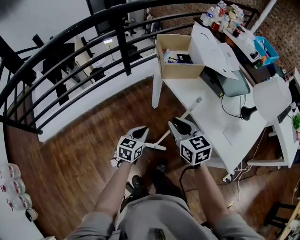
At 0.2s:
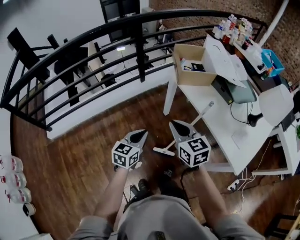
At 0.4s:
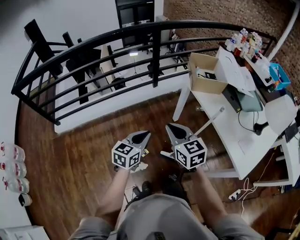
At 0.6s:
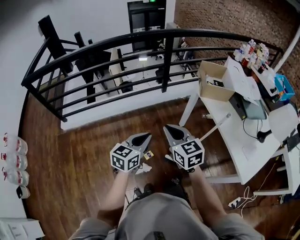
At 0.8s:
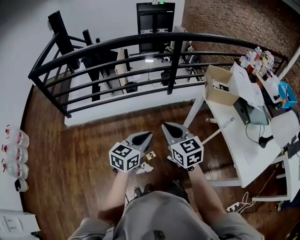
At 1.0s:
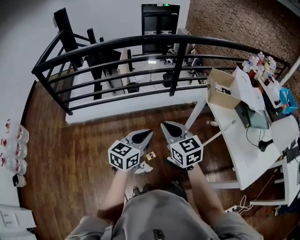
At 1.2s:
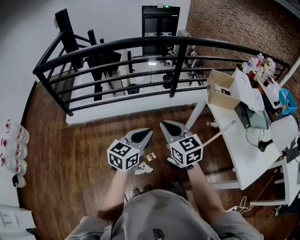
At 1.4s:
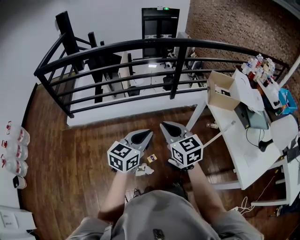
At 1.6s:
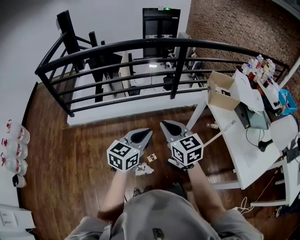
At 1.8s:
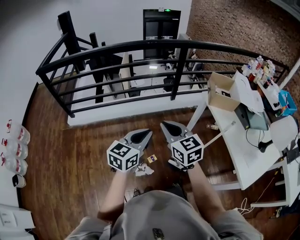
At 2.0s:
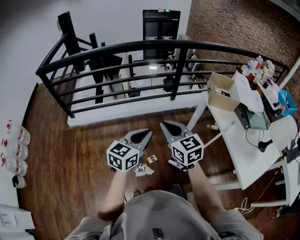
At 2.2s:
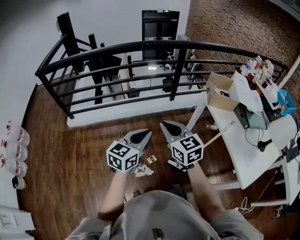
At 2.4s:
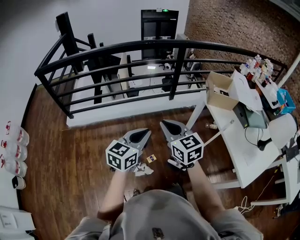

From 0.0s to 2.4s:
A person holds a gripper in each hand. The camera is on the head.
From 0.0s to 1.2s: The right gripper goes some 30 cm to the left, and changes its angle by some 30 degrees. The left gripper travels to the left, upward and backward by some 35 cm, and rotates some 20 degrees.
From 1.2s to 2.4s: There are only small adjustments of the grippers.

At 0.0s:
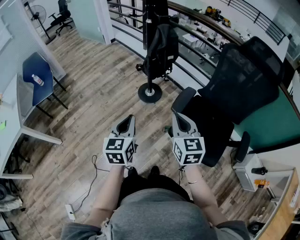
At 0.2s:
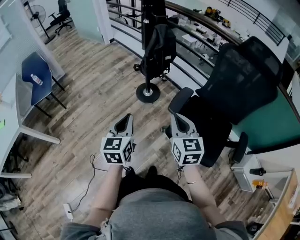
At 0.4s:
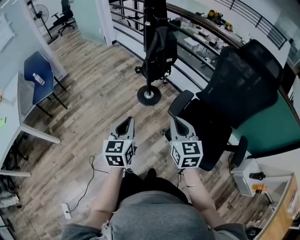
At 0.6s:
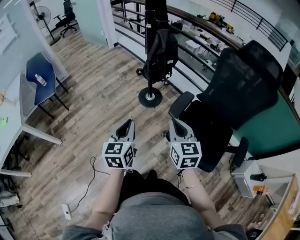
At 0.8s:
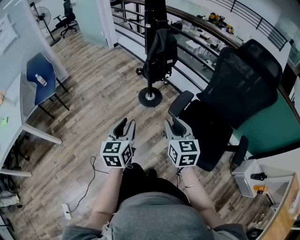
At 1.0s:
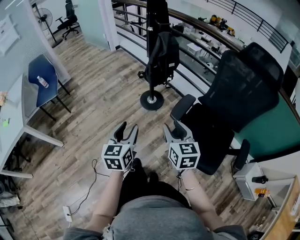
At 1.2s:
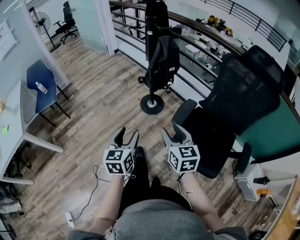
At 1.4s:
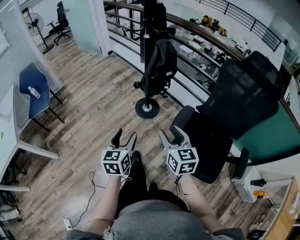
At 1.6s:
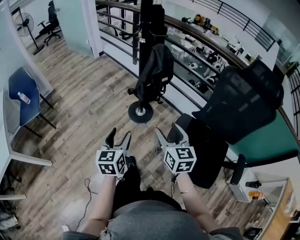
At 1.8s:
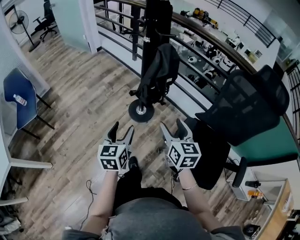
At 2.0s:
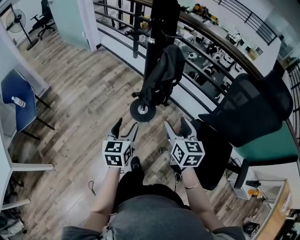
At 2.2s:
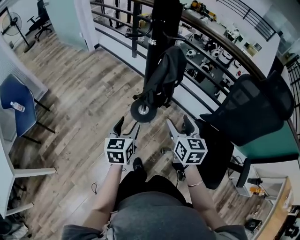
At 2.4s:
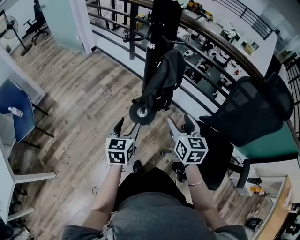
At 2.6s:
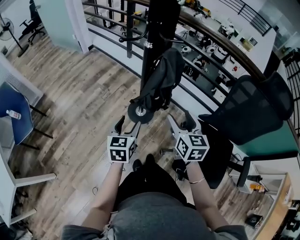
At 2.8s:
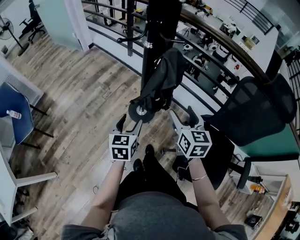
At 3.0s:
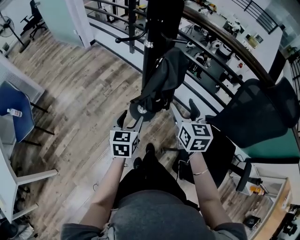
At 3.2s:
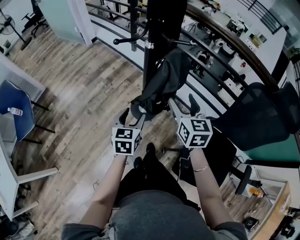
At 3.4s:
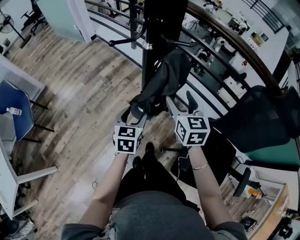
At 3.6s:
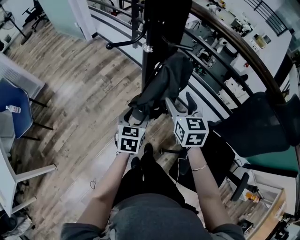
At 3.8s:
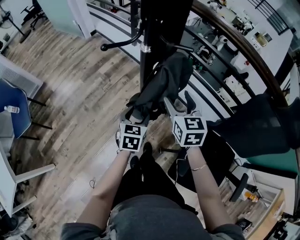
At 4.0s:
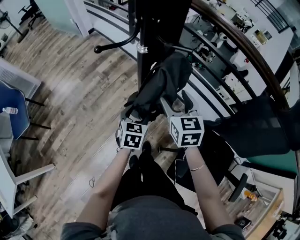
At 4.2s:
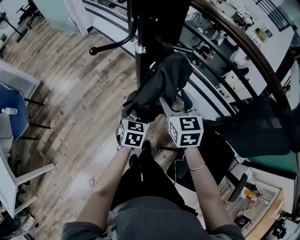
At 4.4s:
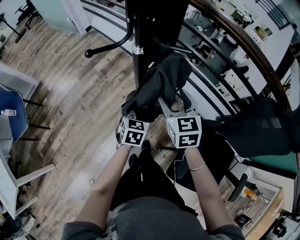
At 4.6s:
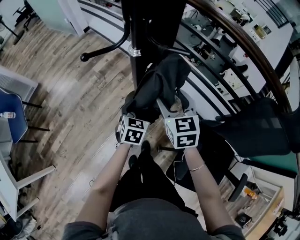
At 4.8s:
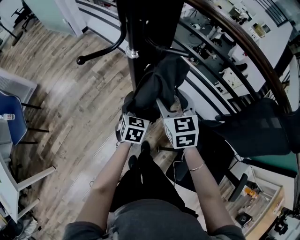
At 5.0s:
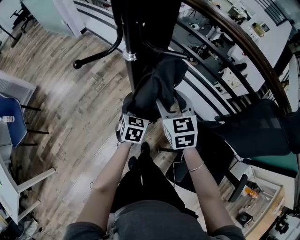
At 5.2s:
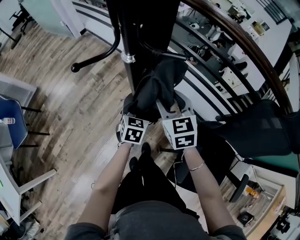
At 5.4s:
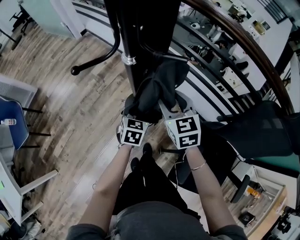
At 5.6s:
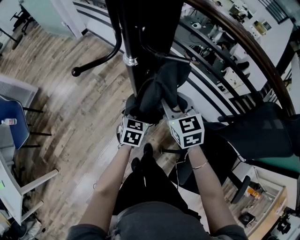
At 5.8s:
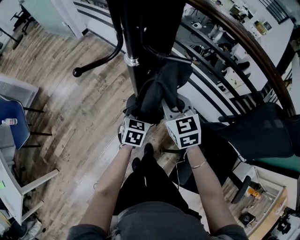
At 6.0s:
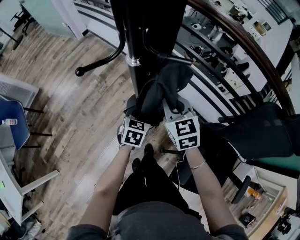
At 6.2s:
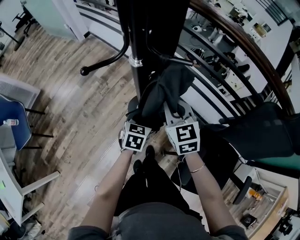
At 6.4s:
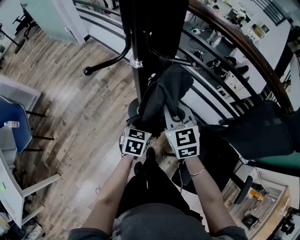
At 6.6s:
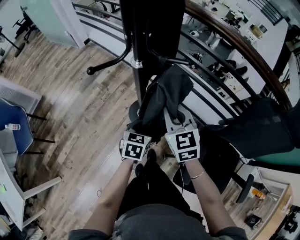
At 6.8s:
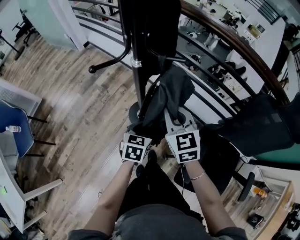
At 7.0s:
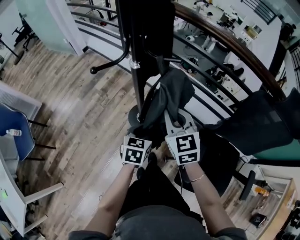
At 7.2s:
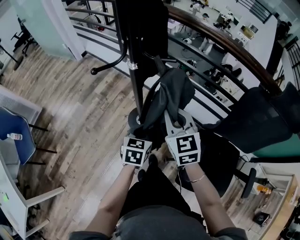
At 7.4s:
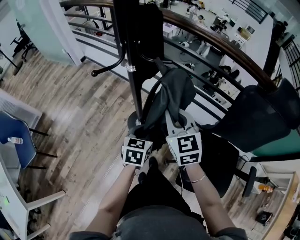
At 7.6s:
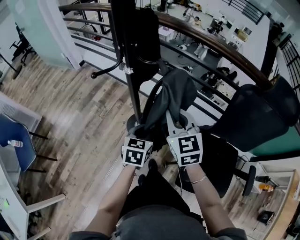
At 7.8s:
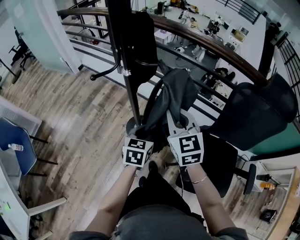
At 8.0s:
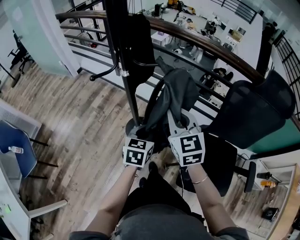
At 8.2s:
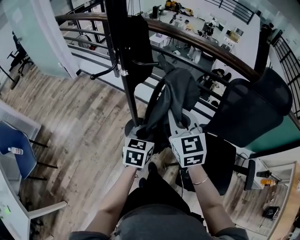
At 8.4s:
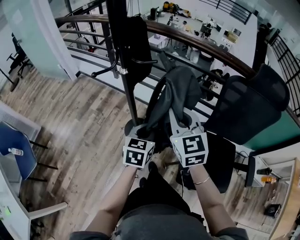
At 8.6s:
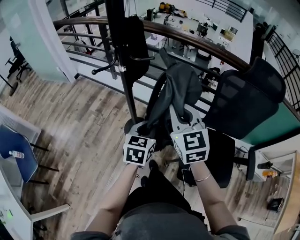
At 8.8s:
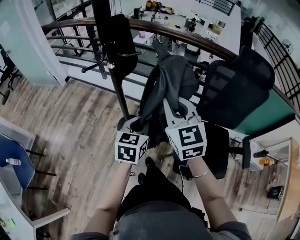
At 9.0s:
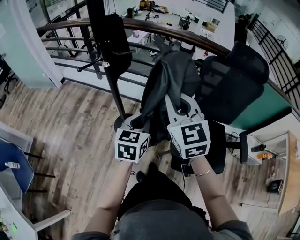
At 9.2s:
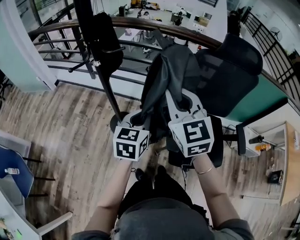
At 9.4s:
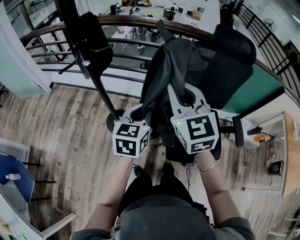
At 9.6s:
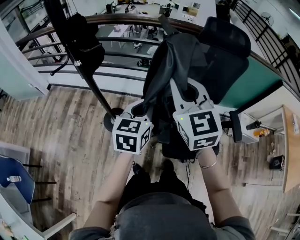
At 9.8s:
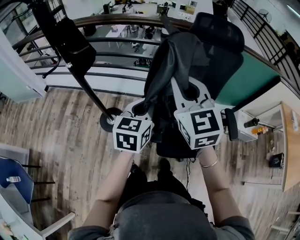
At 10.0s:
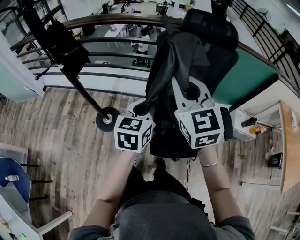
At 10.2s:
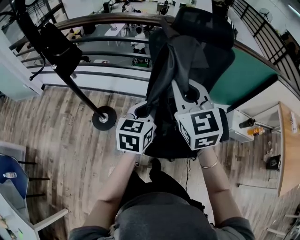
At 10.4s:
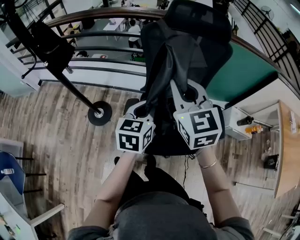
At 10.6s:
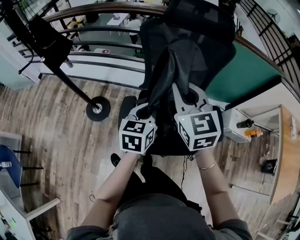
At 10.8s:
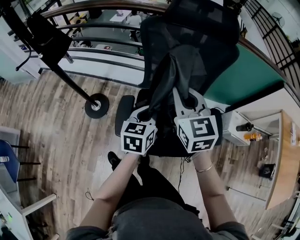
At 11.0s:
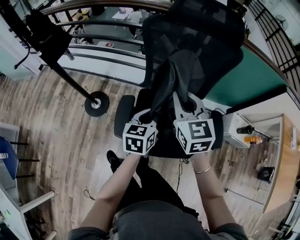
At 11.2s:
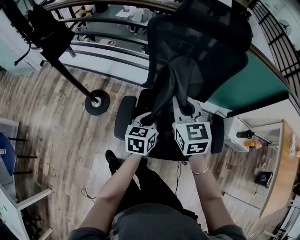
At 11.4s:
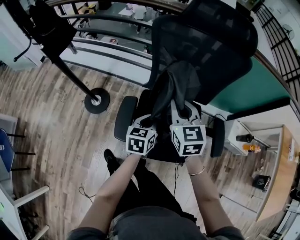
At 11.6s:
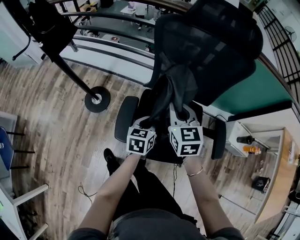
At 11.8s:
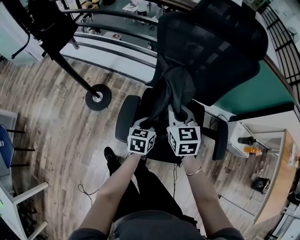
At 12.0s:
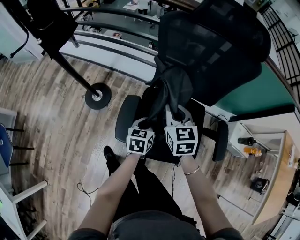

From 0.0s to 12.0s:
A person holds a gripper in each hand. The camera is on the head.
From 0.0s to 1.6s: The two grippers go some 15 cm forward. The left gripper opens up. Meanwhile the right gripper opens.
From 1.6s to 3.0s: Both grippers move forward, roughly 25 cm.
From 3.0s to 4.4s: The right gripper shifts approximately 15 cm forward and downward. Meanwhile the left gripper is displaced forward, downward and to the right by approximately 15 cm.
From 4.4s to 6.0s: The left gripper closes up. The right gripper closes up.
From 6.0s to 7.6s: Both grippers move upward and backward, some 15 cm.
From 7.6s to 9.0s: The left gripper is displaced upward, backward and to the right by approximately 15 cm. The right gripper shifts roughly 15 cm backward, upward and to the right.
From 9.0s to 10.4s: The grippers both shift to the right by some 30 cm.
From 10.4s to 12.0s: The grippers both shift downward by about 25 cm.

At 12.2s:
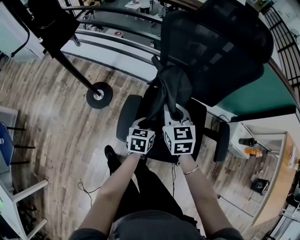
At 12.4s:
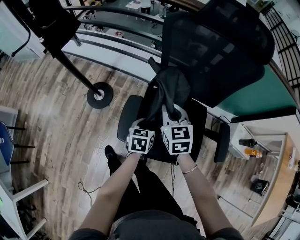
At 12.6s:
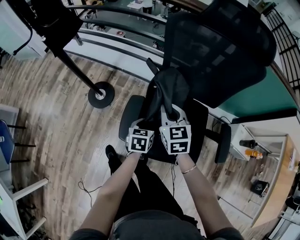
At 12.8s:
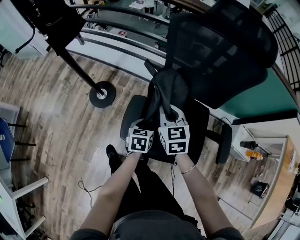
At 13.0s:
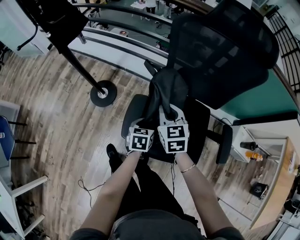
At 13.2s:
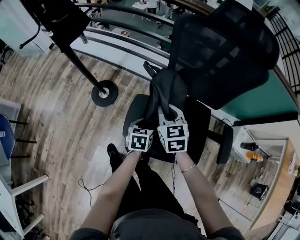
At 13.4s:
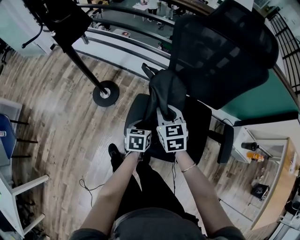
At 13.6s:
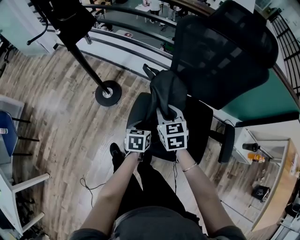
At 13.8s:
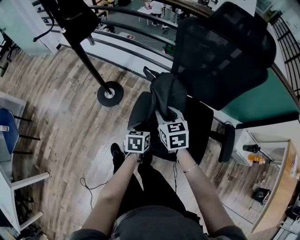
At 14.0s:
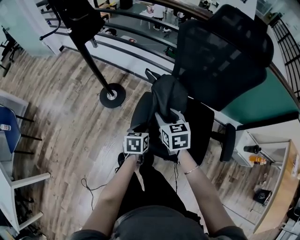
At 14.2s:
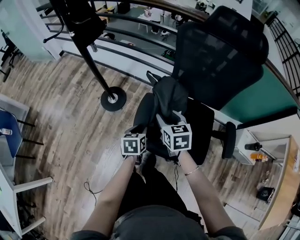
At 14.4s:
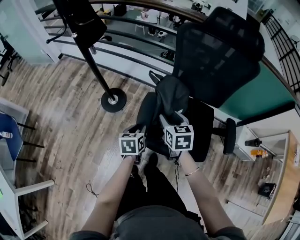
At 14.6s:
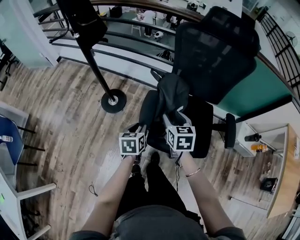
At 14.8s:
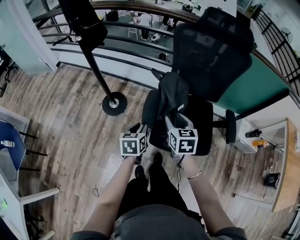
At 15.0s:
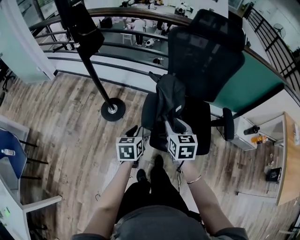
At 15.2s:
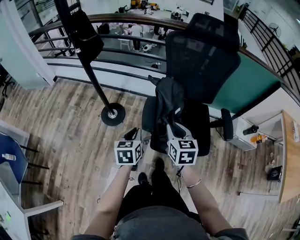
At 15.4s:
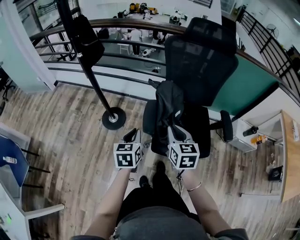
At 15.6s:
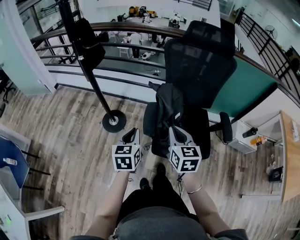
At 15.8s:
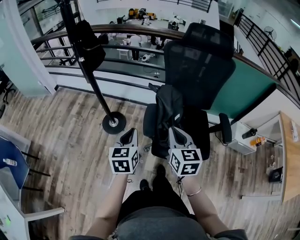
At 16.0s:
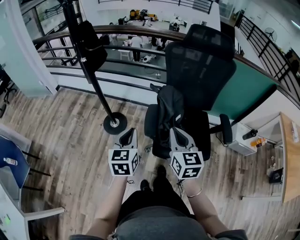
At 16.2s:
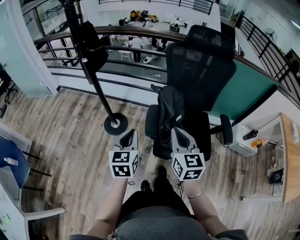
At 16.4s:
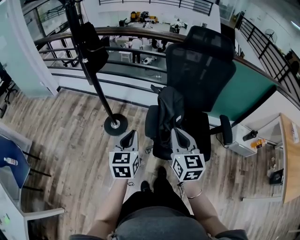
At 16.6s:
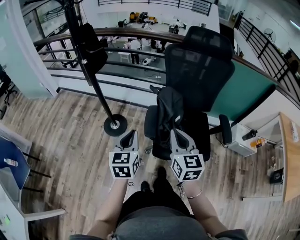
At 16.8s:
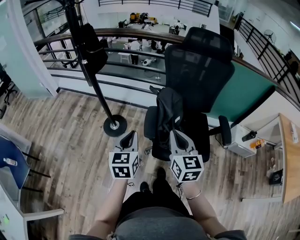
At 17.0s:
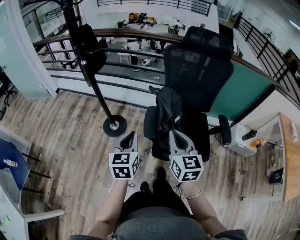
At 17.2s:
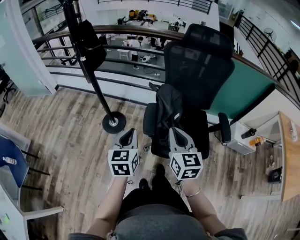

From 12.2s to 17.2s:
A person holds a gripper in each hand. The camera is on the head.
From 12.2s to 13.8s: The left gripper is displaced to the left and backward by roughly 10 cm, while the right gripper travels to the left by approximately 5 cm.
From 13.8s to 15.6s: The left gripper heads upward, to the left and backward, covering some 25 cm, and rotates about 30 degrees. Meanwhile the right gripper moves backward and upward, some 20 cm, and rotates about 30 degrees.
From 15.6s to 17.2s: The right gripper changes place by roughly 5 cm.

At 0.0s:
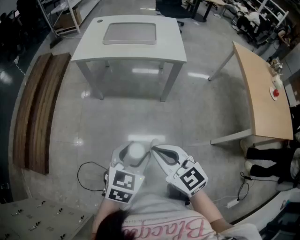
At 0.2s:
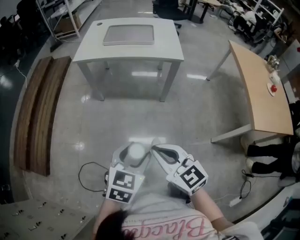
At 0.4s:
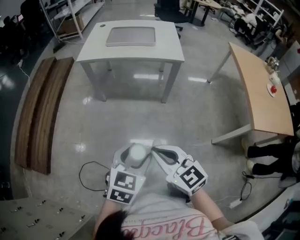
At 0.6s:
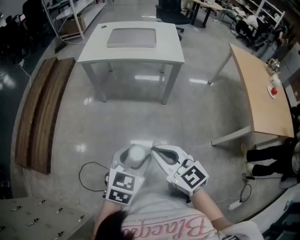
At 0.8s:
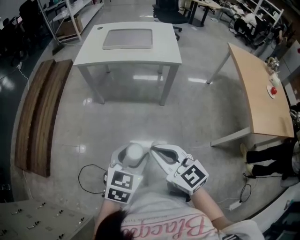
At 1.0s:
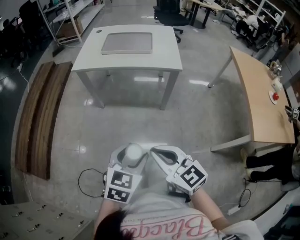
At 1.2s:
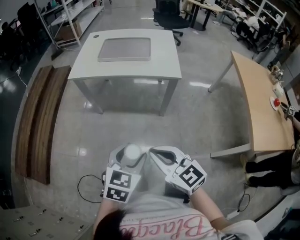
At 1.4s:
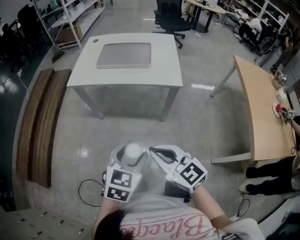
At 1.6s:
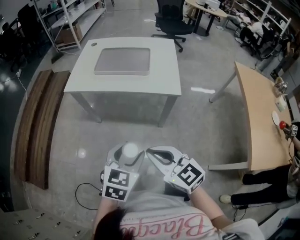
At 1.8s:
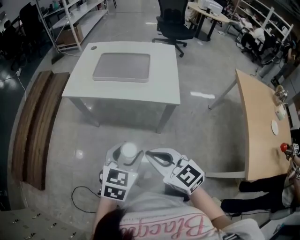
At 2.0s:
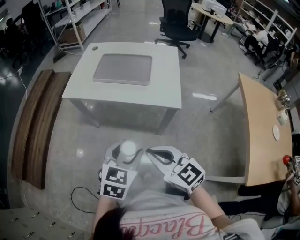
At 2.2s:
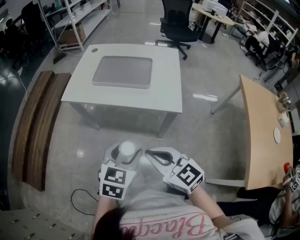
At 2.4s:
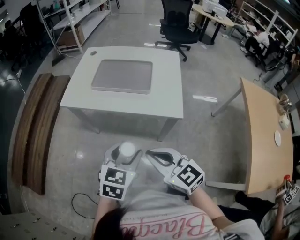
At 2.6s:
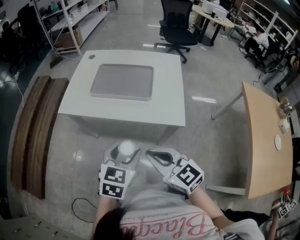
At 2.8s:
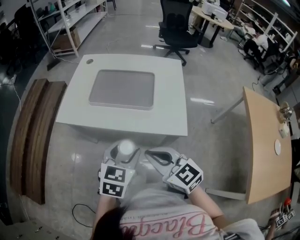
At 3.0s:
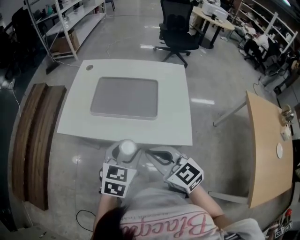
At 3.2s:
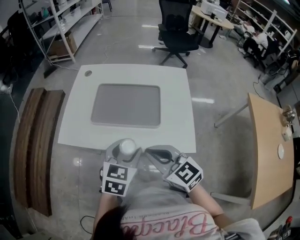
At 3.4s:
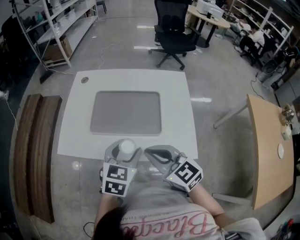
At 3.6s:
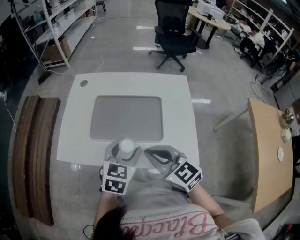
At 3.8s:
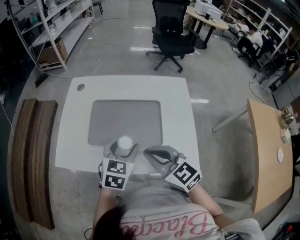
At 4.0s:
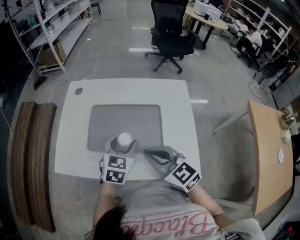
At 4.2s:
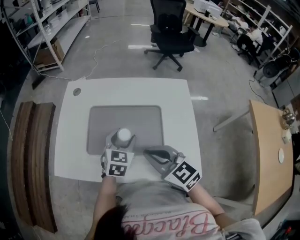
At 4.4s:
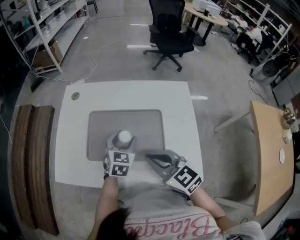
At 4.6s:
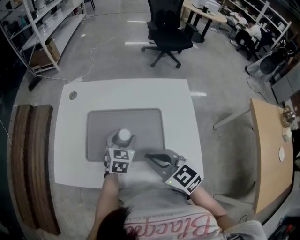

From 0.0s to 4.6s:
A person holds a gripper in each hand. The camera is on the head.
From 0.0s to 1.6s: The grippers both shift forward and to the right by approximately 15 cm.
From 1.6s to 3.0s: The two grippers go some 25 cm forward.
From 3.0s to 4.6s: The right gripper is displaced forward by some 15 cm. The left gripper travels forward and downward by approximately 30 cm.
